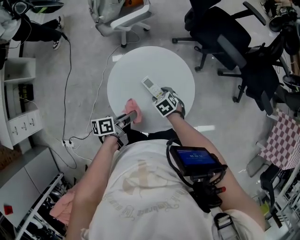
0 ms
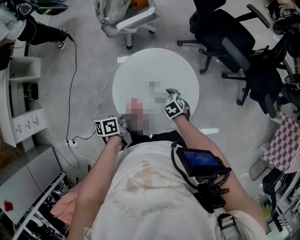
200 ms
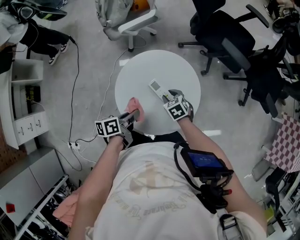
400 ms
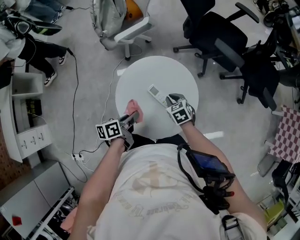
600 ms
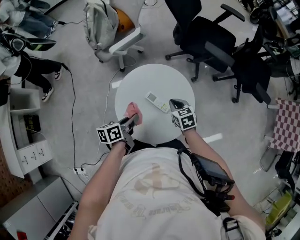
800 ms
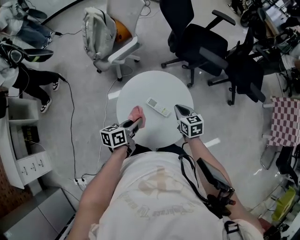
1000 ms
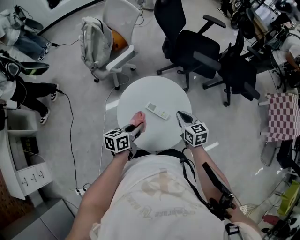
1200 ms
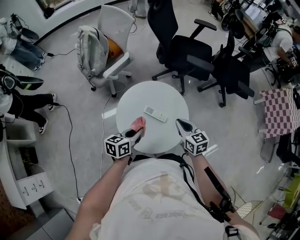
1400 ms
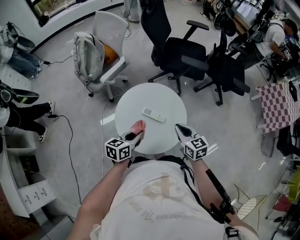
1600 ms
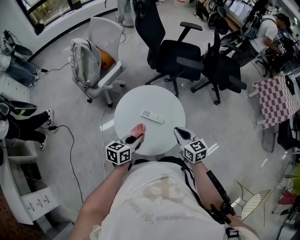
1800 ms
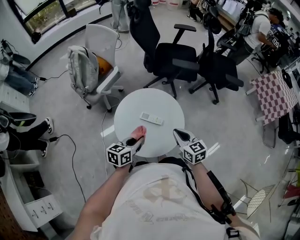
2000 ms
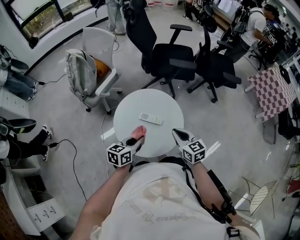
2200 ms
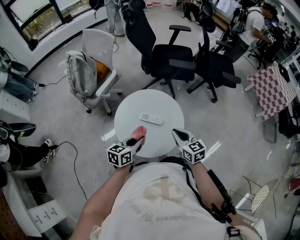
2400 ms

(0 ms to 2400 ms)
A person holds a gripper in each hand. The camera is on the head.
0 ms - 1200 ms: The left gripper shifts some 5 cm upward, and rotates some 40 degrees, while the right gripper goes roughly 20 cm upward, angles its fingers upward, by roughly 30 degrees, and closes up.
1200 ms - 2400 ms: The left gripper travels backward by roughly 5 cm, and rotates approximately 20 degrees; the right gripper heads backward, covering approximately 10 cm.

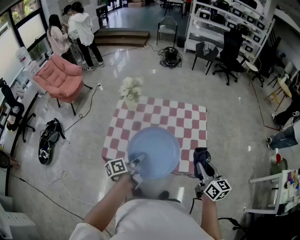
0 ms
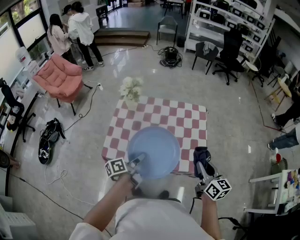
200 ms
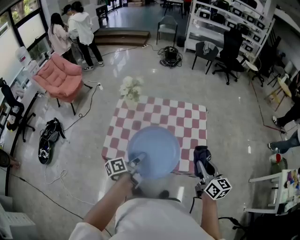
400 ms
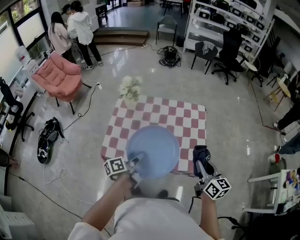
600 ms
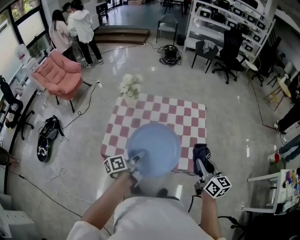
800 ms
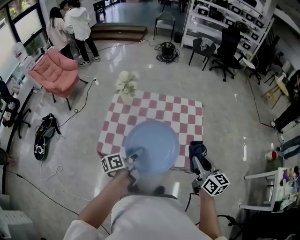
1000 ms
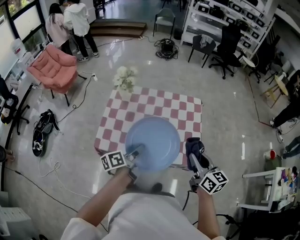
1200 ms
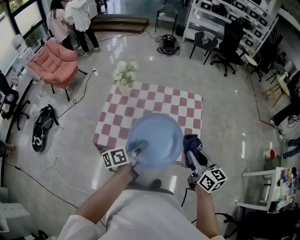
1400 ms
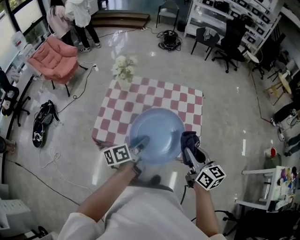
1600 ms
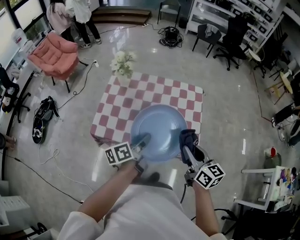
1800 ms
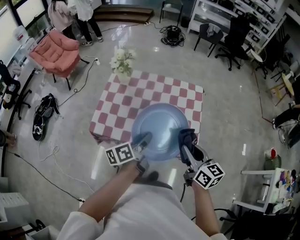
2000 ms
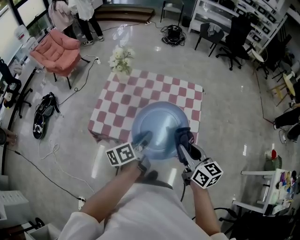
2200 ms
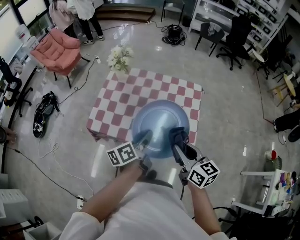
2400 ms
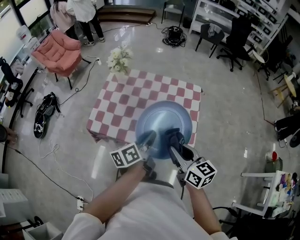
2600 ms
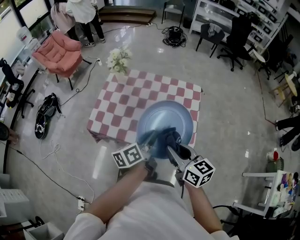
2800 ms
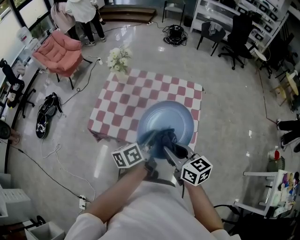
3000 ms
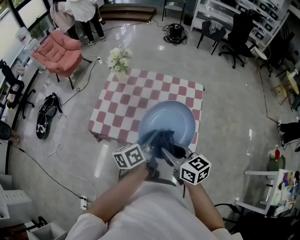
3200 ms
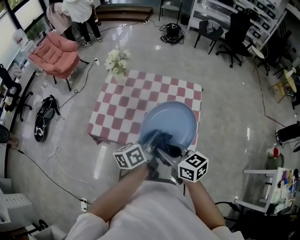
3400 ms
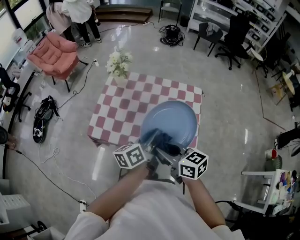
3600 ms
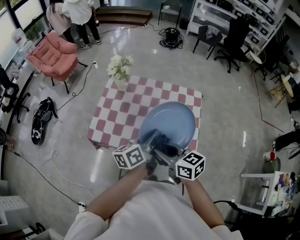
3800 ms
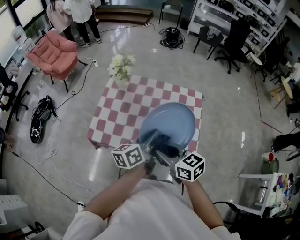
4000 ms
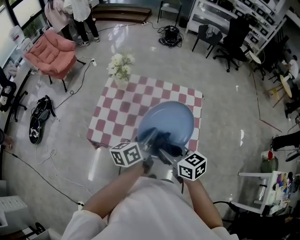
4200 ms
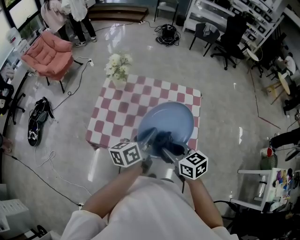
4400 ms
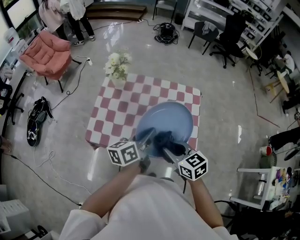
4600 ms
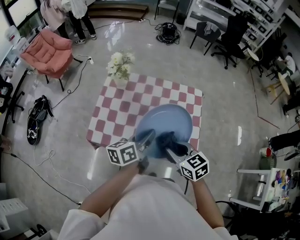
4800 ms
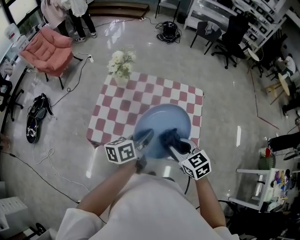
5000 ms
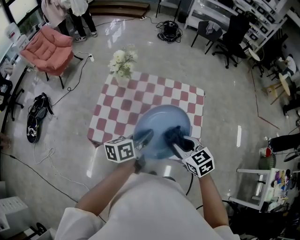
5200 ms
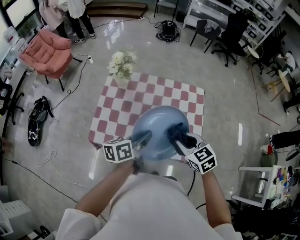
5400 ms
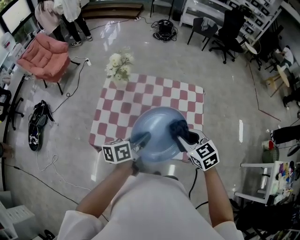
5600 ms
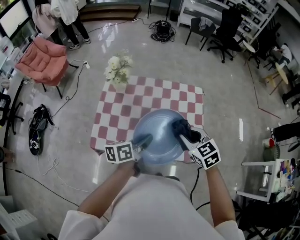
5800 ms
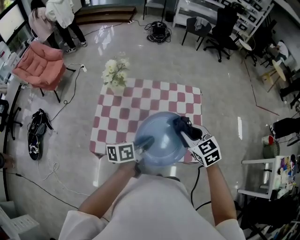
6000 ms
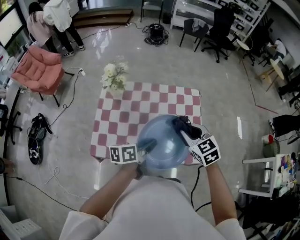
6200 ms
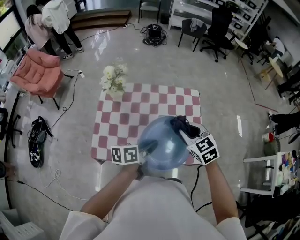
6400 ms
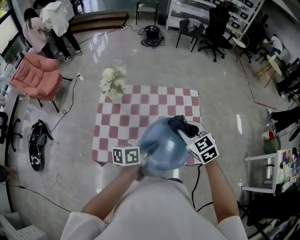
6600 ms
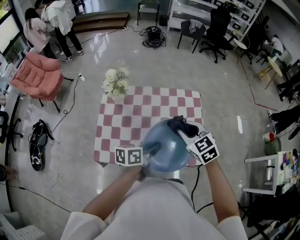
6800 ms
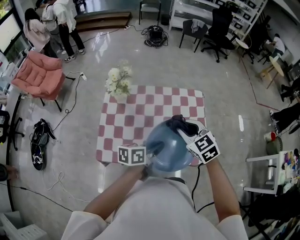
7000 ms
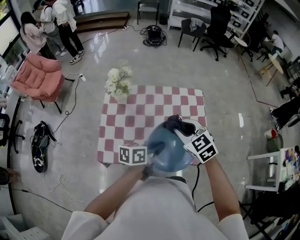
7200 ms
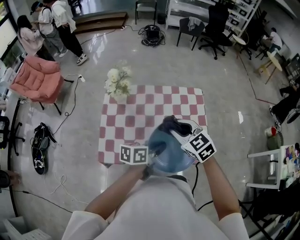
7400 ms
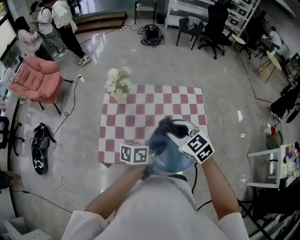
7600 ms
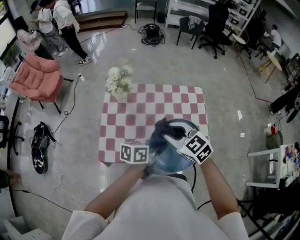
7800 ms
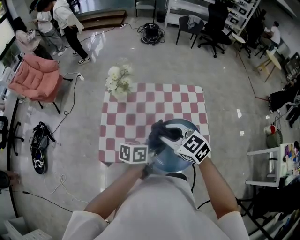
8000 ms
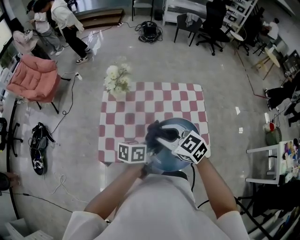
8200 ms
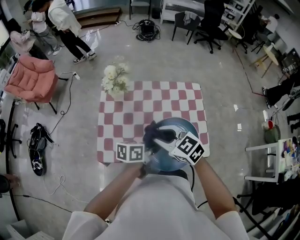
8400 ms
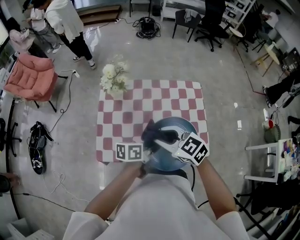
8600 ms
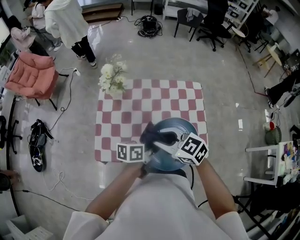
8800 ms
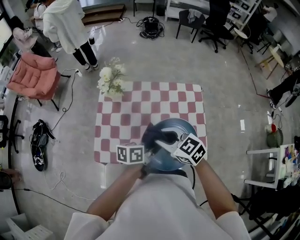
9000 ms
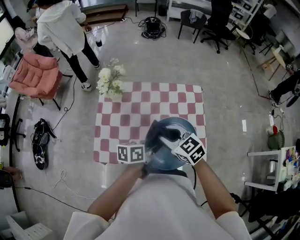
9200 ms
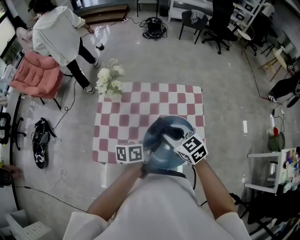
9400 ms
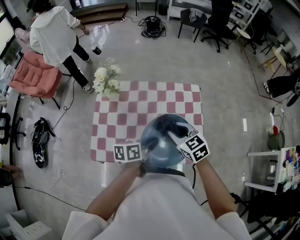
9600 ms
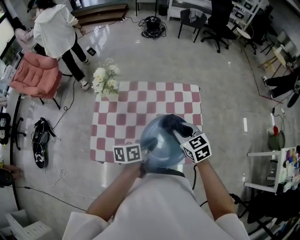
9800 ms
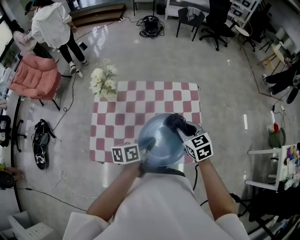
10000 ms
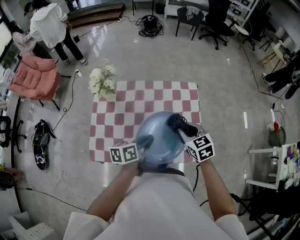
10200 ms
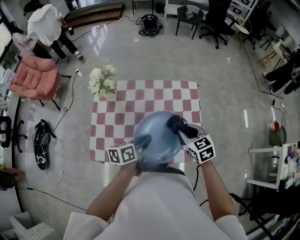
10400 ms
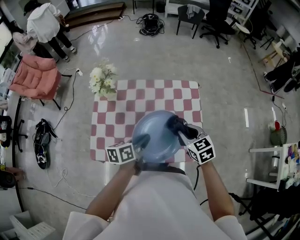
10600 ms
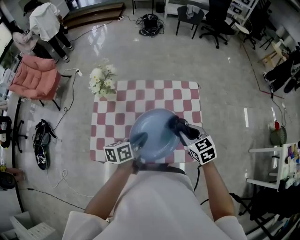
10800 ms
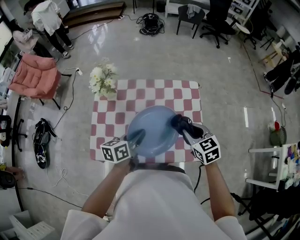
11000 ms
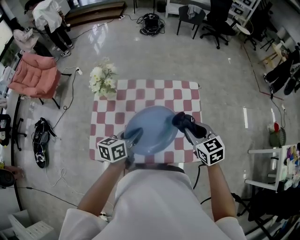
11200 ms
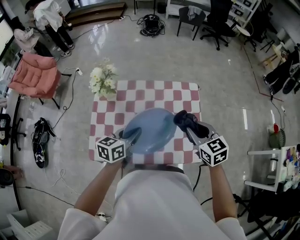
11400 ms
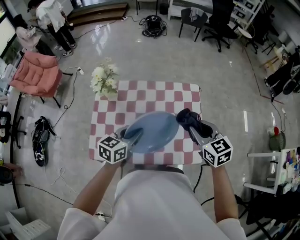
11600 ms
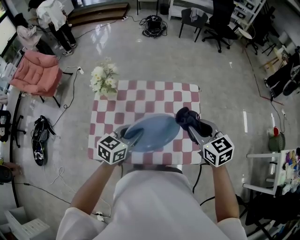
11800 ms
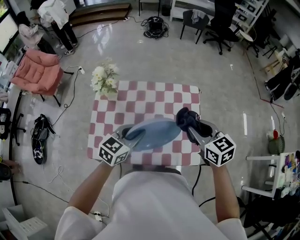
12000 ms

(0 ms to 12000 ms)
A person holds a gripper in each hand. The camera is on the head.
0 ms - 1600 ms: The left gripper shifts roughly 5 cm to the right.
1600 ms - 3000 ms: The left gripper shifts some 10 cm to the right.
3000 ms - 4400 ms: The left gripper moves forward, about 10 cm. Meanwhile the right gripper travels forward and to the left by about 10 cm.
4400 ms - 6000 ms: The left gripper heads downward, covering some 5 cm, and changes its angle by some 20 degrees; the right gripper goes approximately 10 cm forward, and swivels some 30 degrees.
6000 ms - 7600 ms: The right gripper is displaced to the left by roughly 15 cm.
9000 ms - 10400 ms: The right gripper heads to the right, covering some 20 cm, and rotates approximately 30 degrees.
10400 ms - 12000 ms: The right gripper travels upward by approximately 10 cm. The left gripper moves upward, some 5 cm, and rolls clockwise, seen from behind, by some 50 degrees.

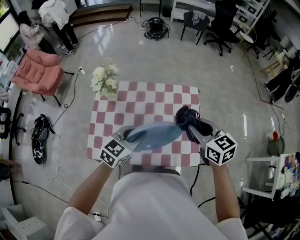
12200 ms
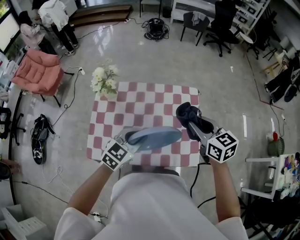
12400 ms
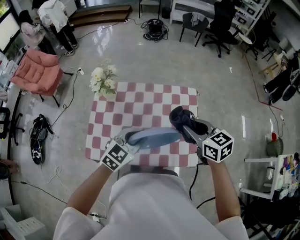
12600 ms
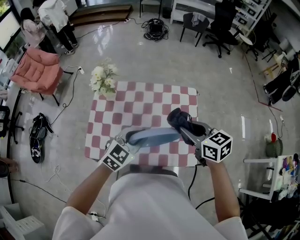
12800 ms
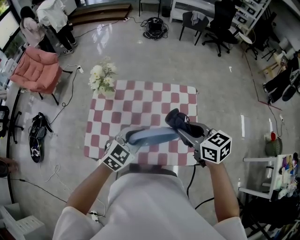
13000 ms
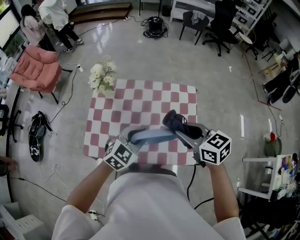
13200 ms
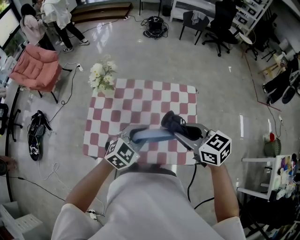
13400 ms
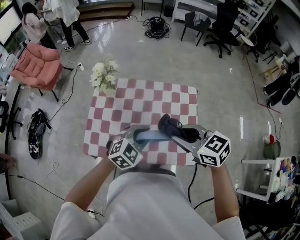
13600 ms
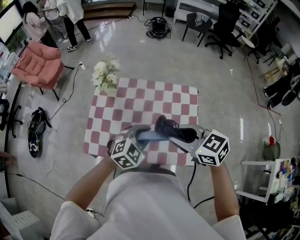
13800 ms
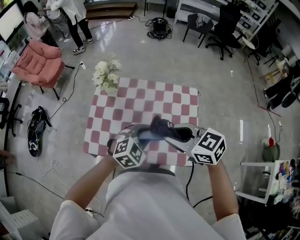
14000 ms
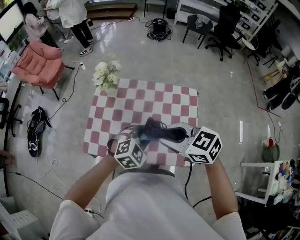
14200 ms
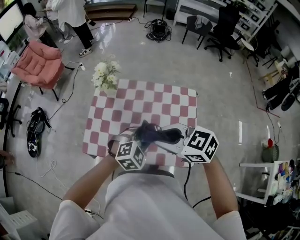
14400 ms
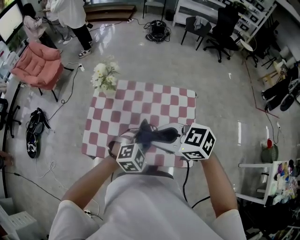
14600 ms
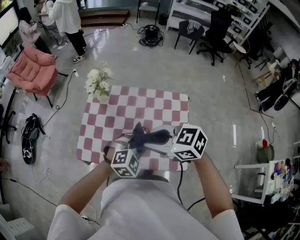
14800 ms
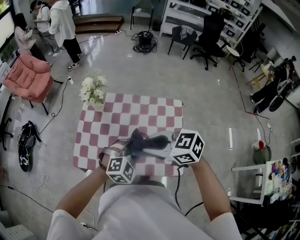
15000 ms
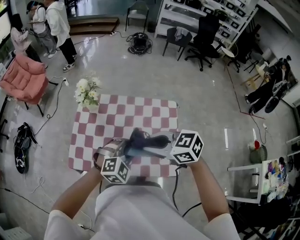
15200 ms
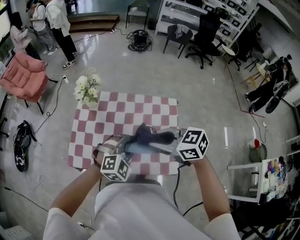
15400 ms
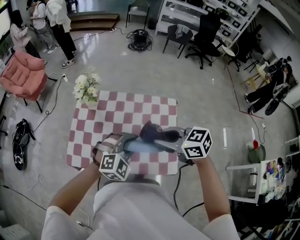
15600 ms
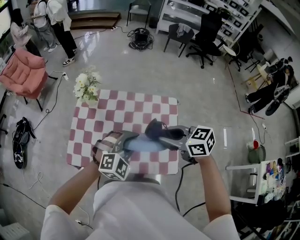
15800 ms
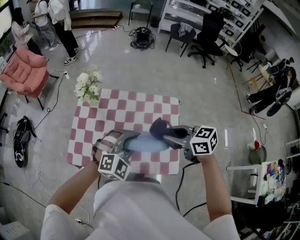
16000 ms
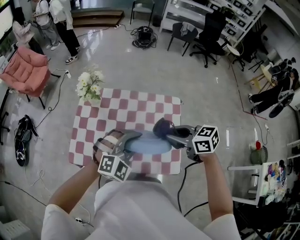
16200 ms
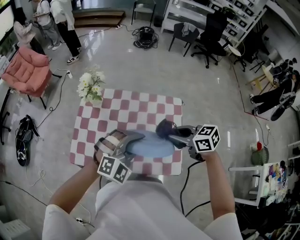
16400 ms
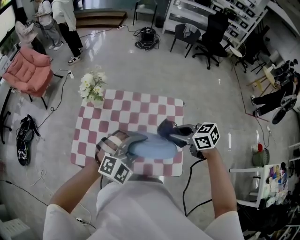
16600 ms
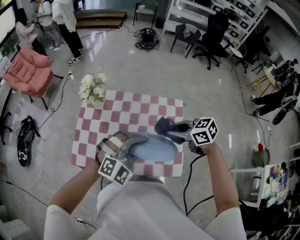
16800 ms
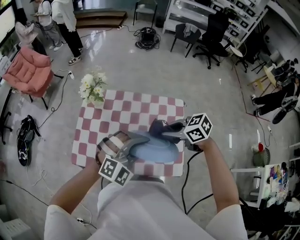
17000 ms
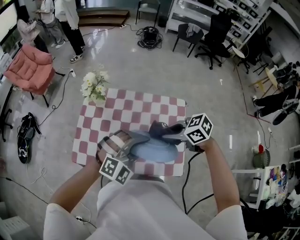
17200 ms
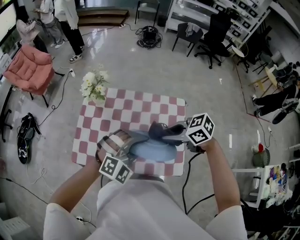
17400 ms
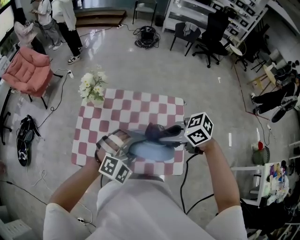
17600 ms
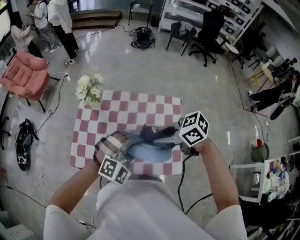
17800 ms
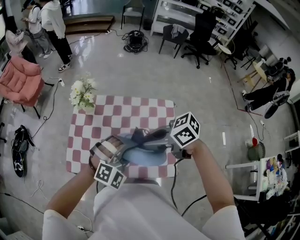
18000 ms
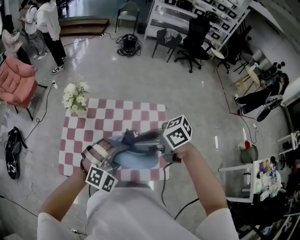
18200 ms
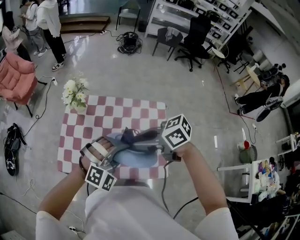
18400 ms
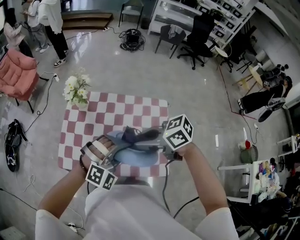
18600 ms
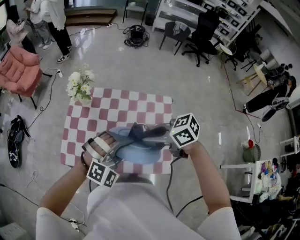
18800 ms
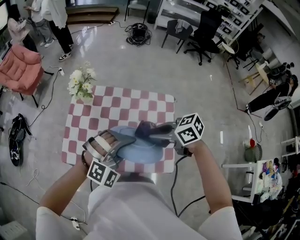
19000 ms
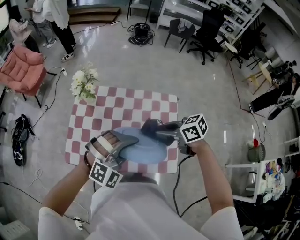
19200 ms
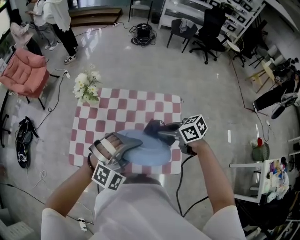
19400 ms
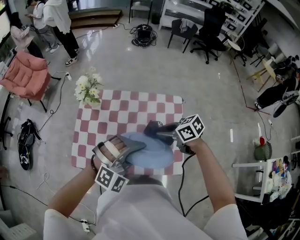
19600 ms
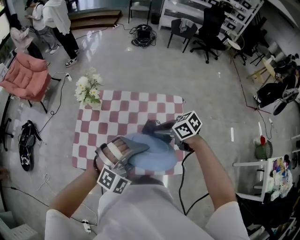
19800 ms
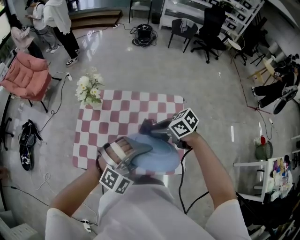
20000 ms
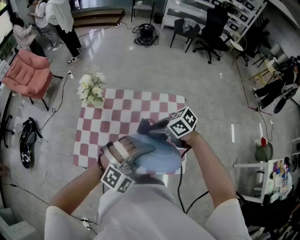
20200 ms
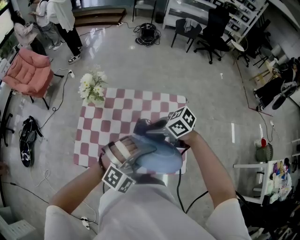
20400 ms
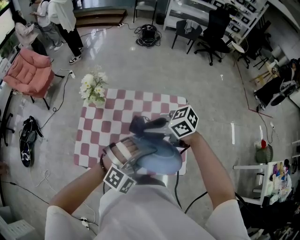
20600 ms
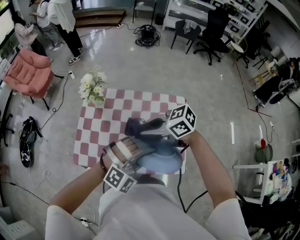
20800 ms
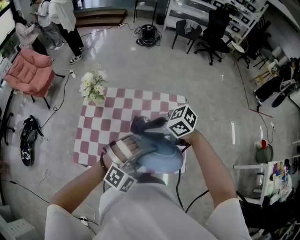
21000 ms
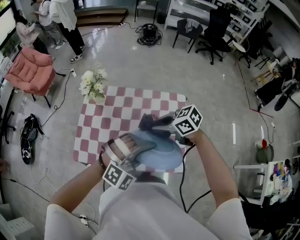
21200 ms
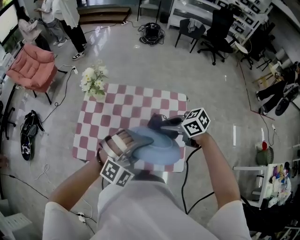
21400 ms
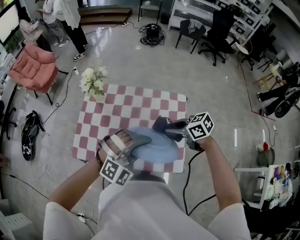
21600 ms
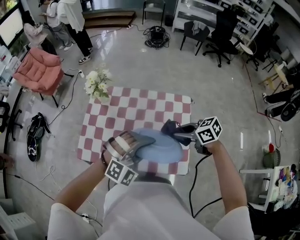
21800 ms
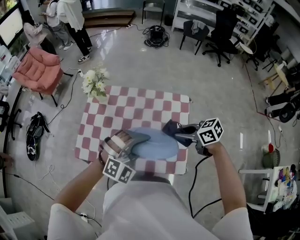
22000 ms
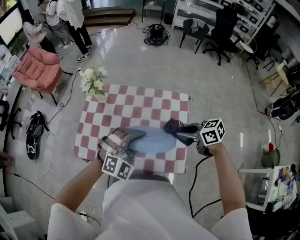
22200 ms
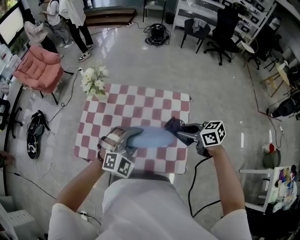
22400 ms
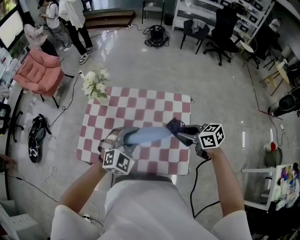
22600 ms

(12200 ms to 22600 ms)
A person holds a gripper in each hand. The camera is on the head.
12200 ms - 13600 ms: The right gripper travels to the left and backward by about 10 cm, and changes its angle by some 20 degrees, while the left gripper swivels some 20 degrees.
15200 ms - 16600 ms: The left gripper goes approximately 5 cm upward. Meanwhile the right gripper shifts some 15 cm to the right and downward.
16600 ms - 18200 ms: The right gripper changes place by approximately 10 cm, and changes its angle by approximately 20 degrees.
18200 ms - 19600 ms: The right gripper moves downward, about 10 cm.
21200 ms - 22600 ms: The left gripper shifts by some 10 cm, and rotates approximately 30 degrees; the right gripper ends up some 15 cm from where it was.
